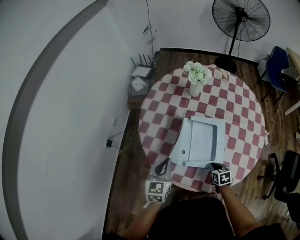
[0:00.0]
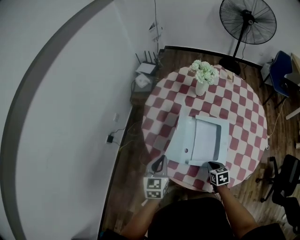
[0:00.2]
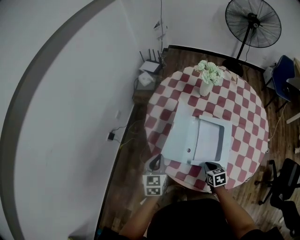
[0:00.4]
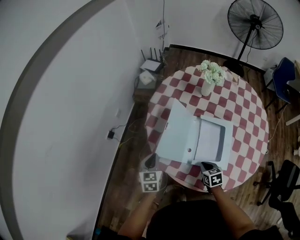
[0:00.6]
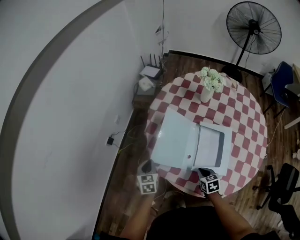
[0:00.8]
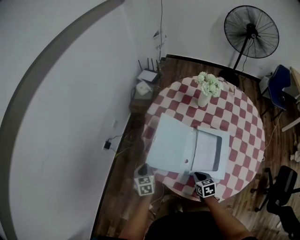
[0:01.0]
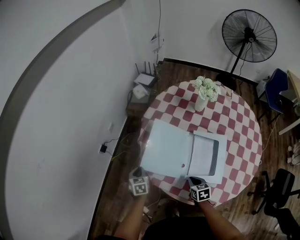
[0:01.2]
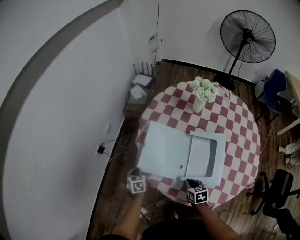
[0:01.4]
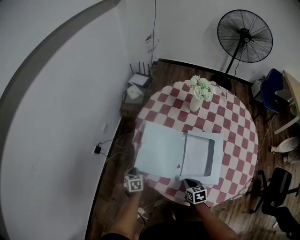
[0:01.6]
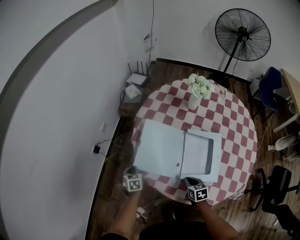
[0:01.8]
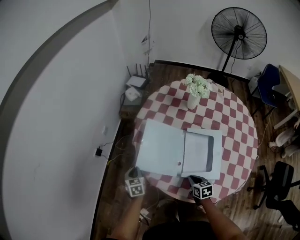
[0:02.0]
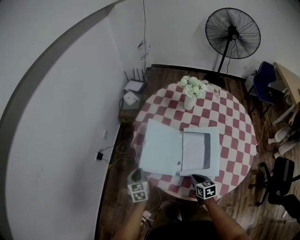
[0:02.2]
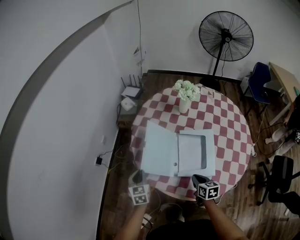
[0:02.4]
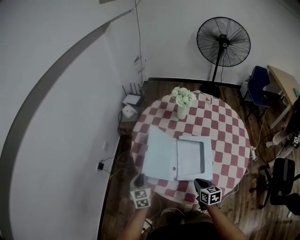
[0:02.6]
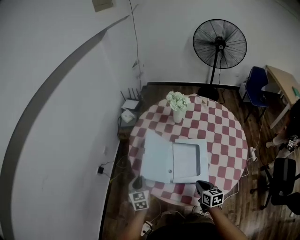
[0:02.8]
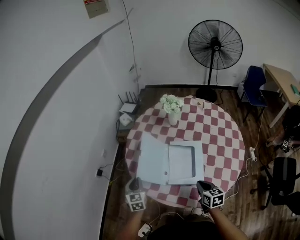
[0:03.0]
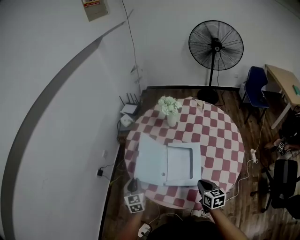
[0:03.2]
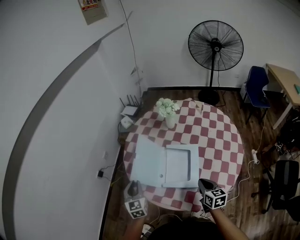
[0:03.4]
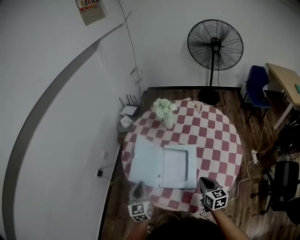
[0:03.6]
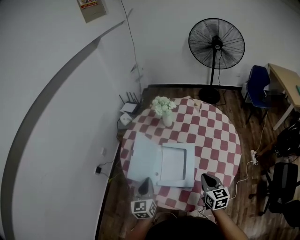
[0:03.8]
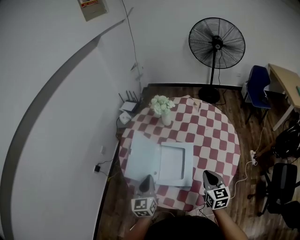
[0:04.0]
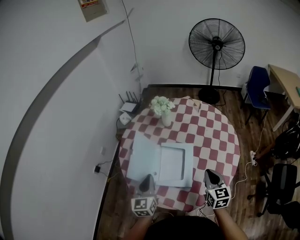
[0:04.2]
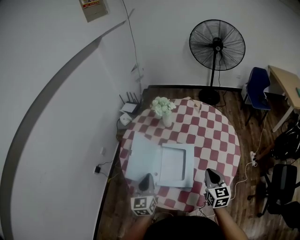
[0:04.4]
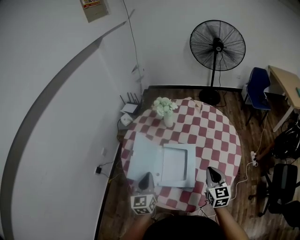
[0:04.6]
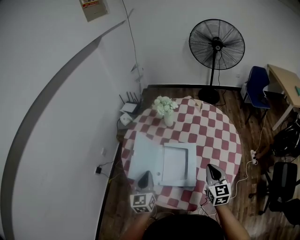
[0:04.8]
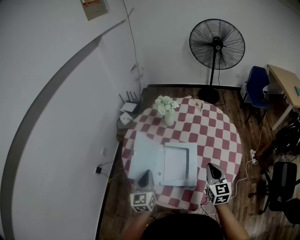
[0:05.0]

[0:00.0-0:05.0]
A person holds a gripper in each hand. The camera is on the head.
0:00.0 to 0:01.6: The left gripper is displaced downward, to the left and forward by roughly 30 cm, and swivels approximately 40 degrees; the right gripper heads to the left, covering about 15 cm.
0:01.6 to 0:03.4: The right gripper is displaced to the right, upward and backward by some 30 cm, and rotates about 20 degrees. The left gripper moves upward, to the right and backward, about 35 cm, and points its fingers roughly 30 degrees further upward.
0:03.4 to 0:05.0: The left gripper moves to the right and upward, approximately 10 cm, while the right gripper heads upward, covering about 10 cm, and changes its angle by roughly 20 degrees.

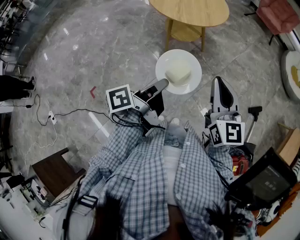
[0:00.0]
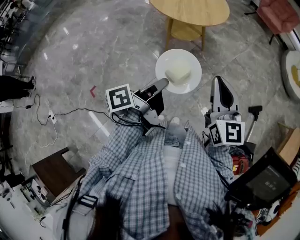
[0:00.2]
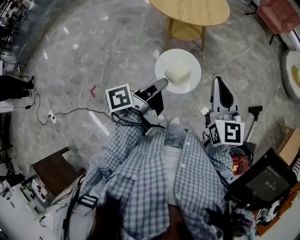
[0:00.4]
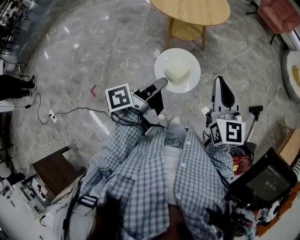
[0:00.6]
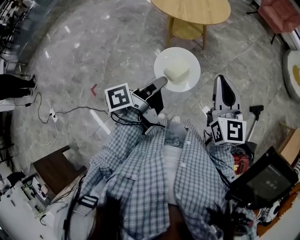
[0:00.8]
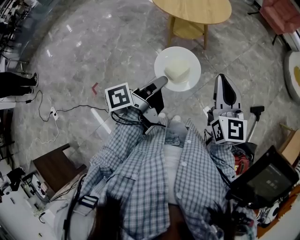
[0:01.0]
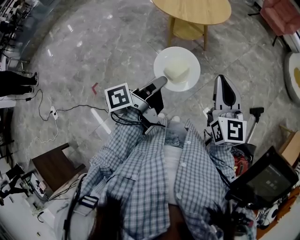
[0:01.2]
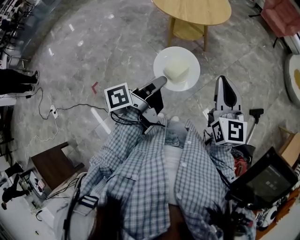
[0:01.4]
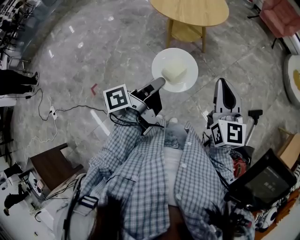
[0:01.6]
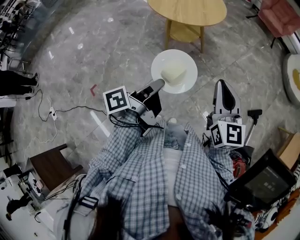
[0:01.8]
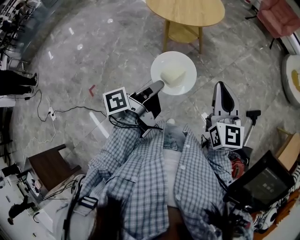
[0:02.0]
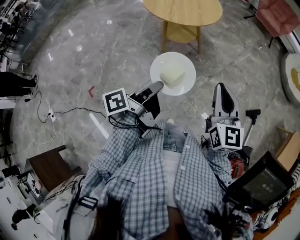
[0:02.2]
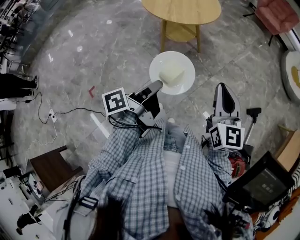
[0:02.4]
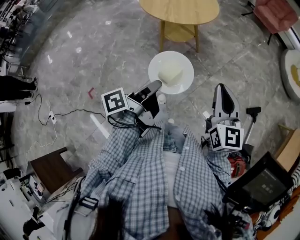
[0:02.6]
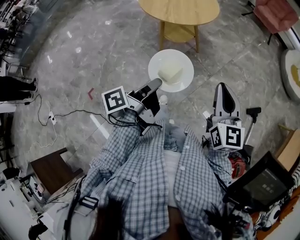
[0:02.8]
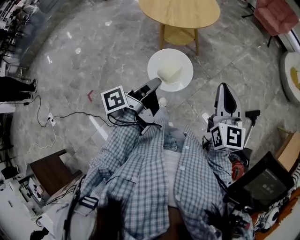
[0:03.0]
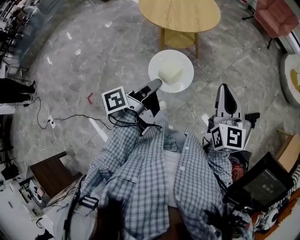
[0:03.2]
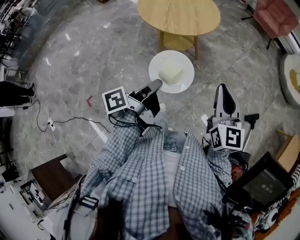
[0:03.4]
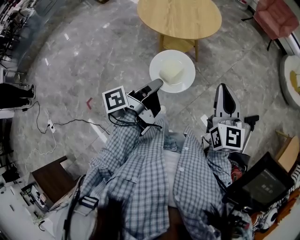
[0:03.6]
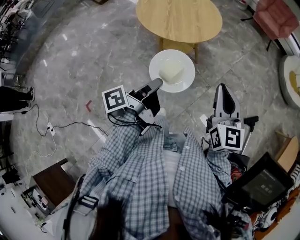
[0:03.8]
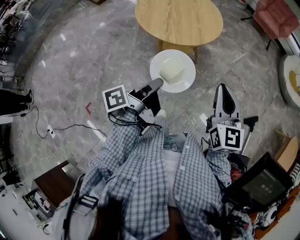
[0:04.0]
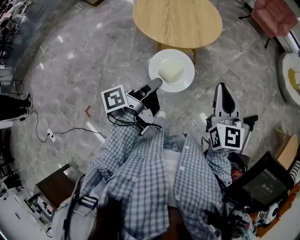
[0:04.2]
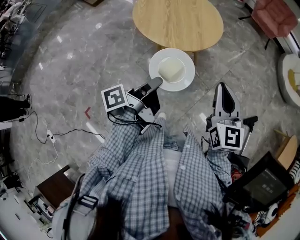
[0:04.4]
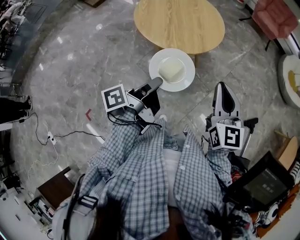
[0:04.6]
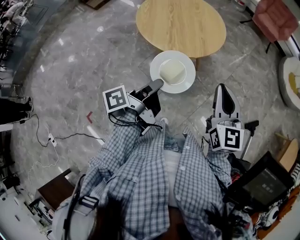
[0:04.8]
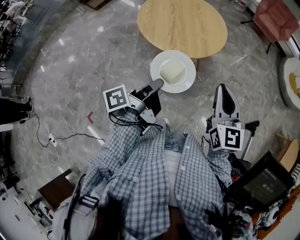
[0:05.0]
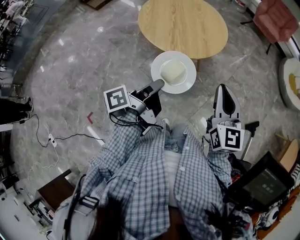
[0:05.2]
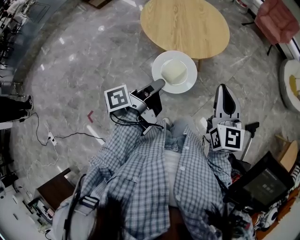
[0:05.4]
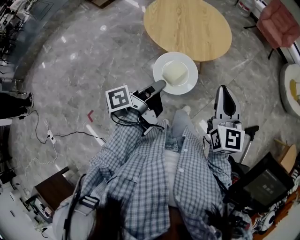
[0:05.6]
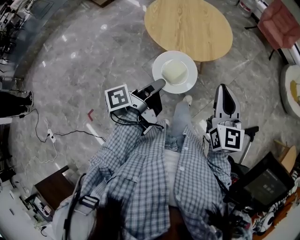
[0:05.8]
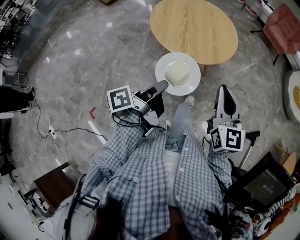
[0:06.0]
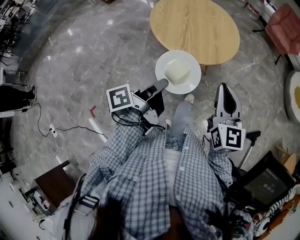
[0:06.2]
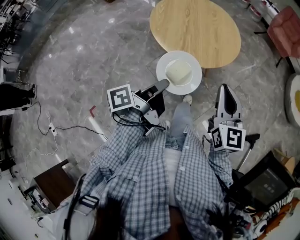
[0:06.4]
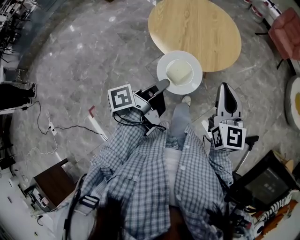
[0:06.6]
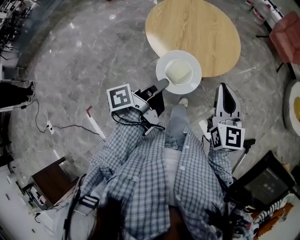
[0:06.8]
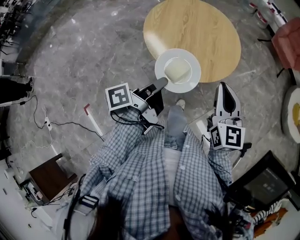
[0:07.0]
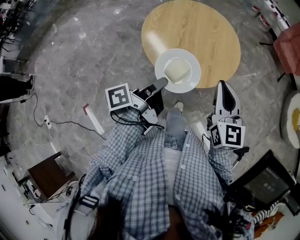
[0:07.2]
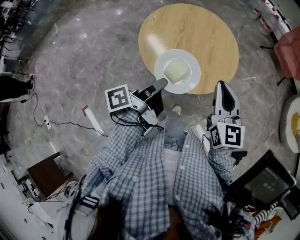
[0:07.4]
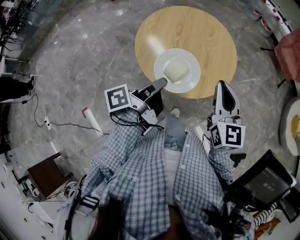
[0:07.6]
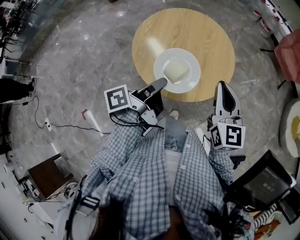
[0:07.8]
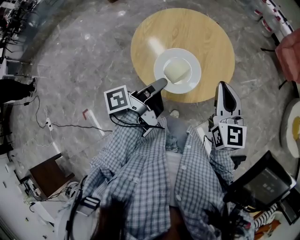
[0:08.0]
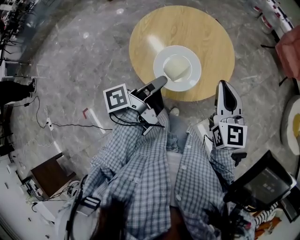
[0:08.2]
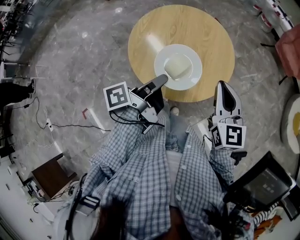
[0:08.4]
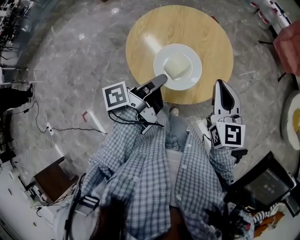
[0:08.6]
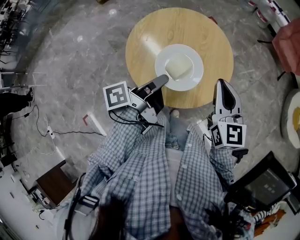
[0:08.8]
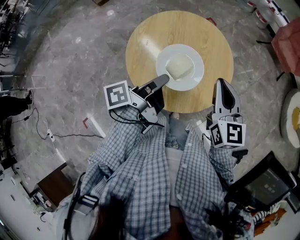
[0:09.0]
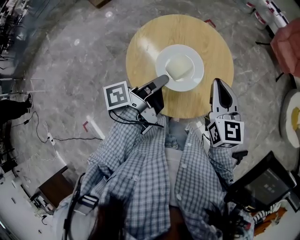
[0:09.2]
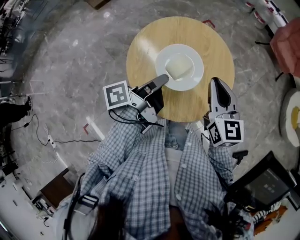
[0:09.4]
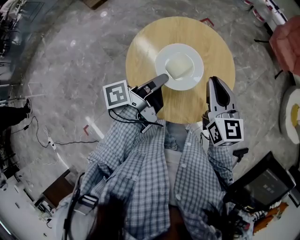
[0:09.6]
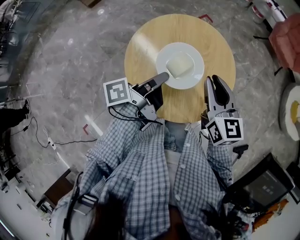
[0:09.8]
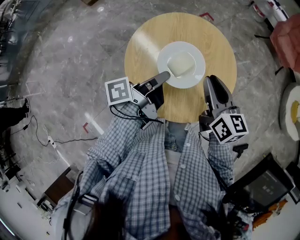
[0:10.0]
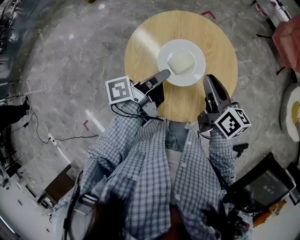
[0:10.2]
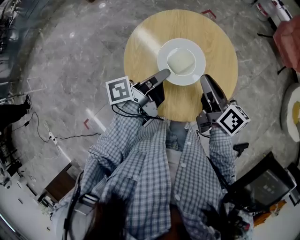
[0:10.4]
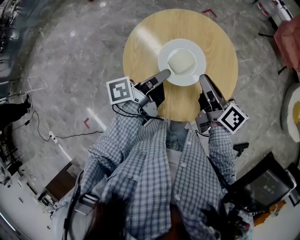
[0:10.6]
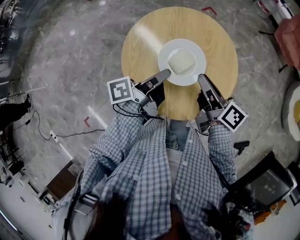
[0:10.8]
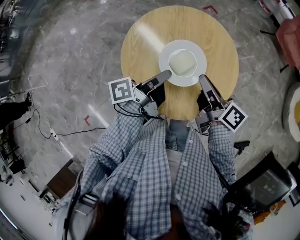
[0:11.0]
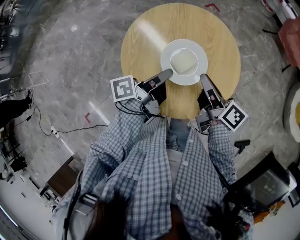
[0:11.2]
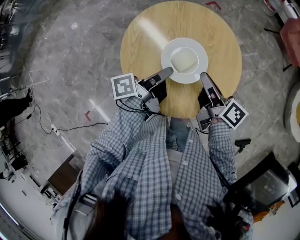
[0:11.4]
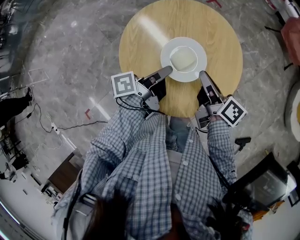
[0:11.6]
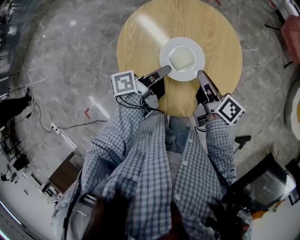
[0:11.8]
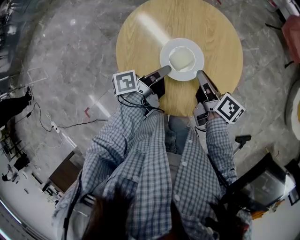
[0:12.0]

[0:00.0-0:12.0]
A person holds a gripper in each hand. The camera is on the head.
0:01.6 to 0:03.0: The right gripper changes place by approximately 5 cm.
0:03.0 to 0:04.4: The right gripper changes place by about 15 cm.
0:04.4 to 0:06.0: The right gripper shifts by roughly 5 cm.
0:06.0 to 0:07.6: The right gripper shifts by about 25 cm.
0:07.6 to 0:09.0: The right gripper ends up roughly 5 cm from where it was.
0:09.0 to 0:10.4: The right gripper moves about 10 cm, and rotates around the line of its fingers by about 50 degrees, clockwise from behind.
0:10.4 to 0:12.0: The right gripper is displaced downward by approximately 10 cm.

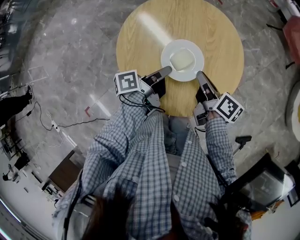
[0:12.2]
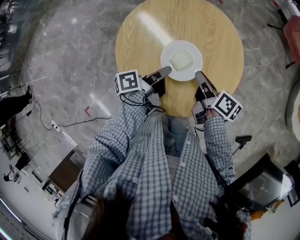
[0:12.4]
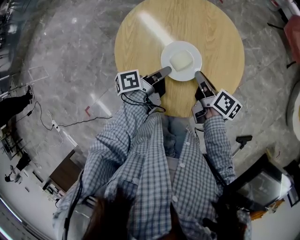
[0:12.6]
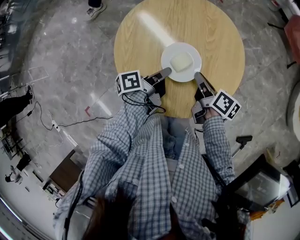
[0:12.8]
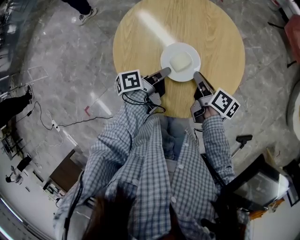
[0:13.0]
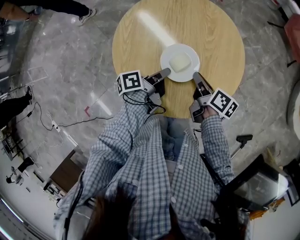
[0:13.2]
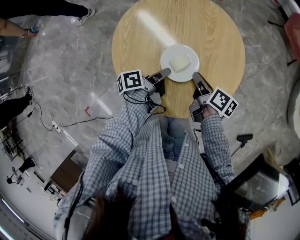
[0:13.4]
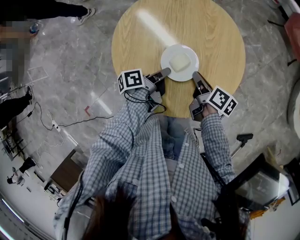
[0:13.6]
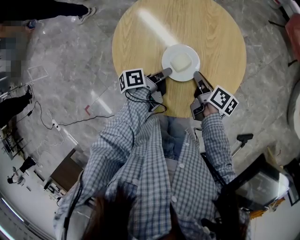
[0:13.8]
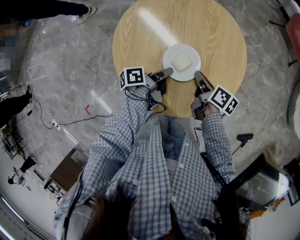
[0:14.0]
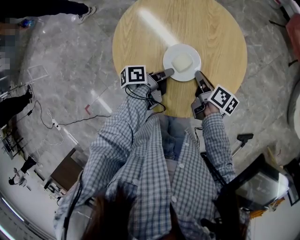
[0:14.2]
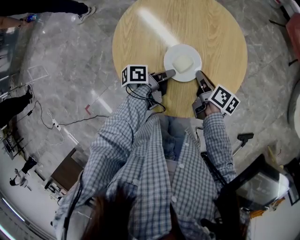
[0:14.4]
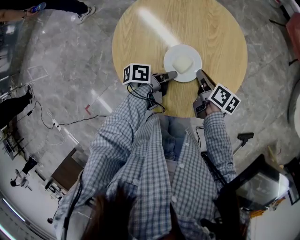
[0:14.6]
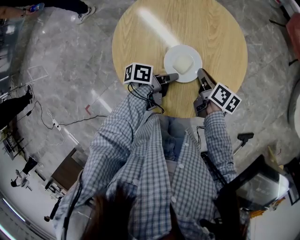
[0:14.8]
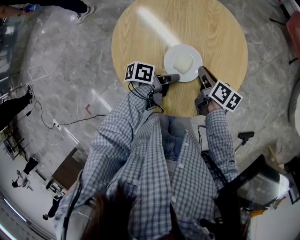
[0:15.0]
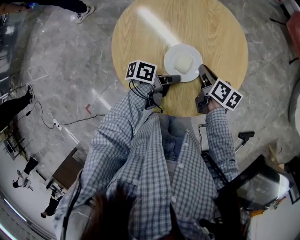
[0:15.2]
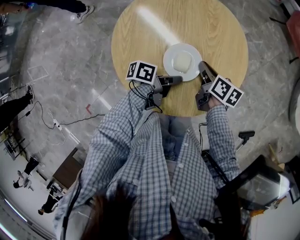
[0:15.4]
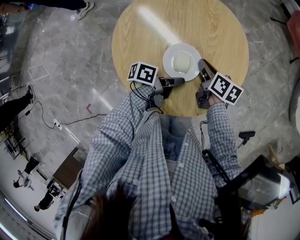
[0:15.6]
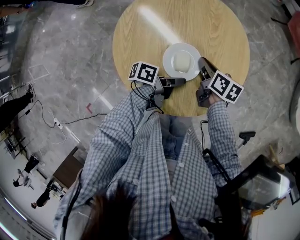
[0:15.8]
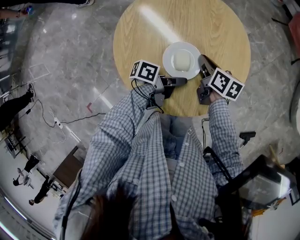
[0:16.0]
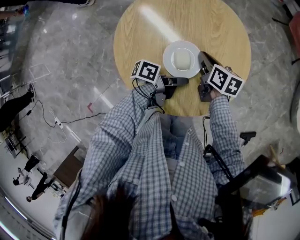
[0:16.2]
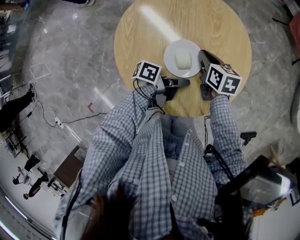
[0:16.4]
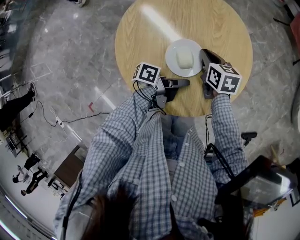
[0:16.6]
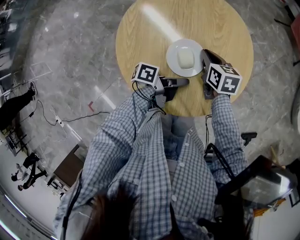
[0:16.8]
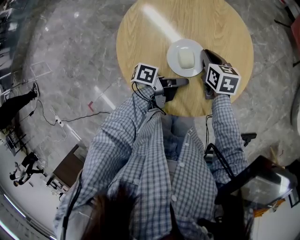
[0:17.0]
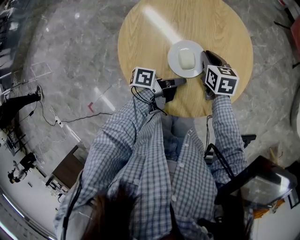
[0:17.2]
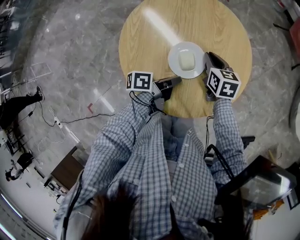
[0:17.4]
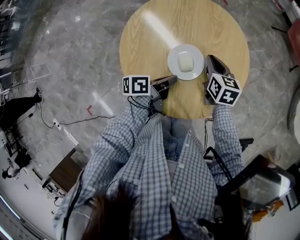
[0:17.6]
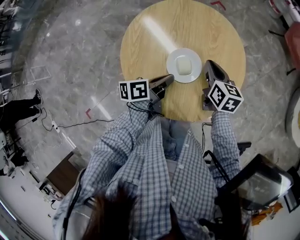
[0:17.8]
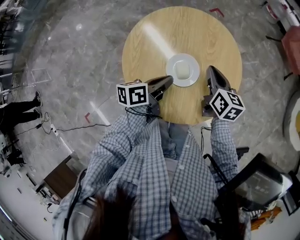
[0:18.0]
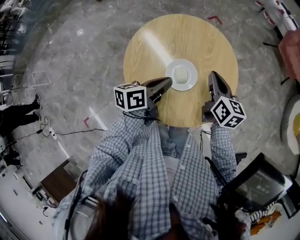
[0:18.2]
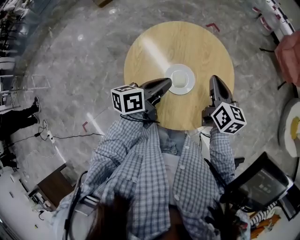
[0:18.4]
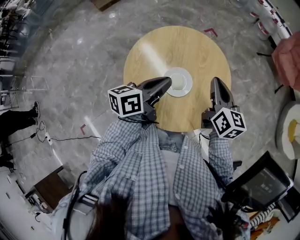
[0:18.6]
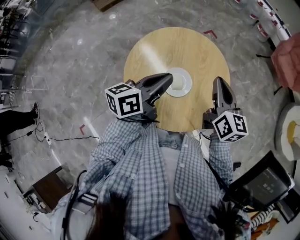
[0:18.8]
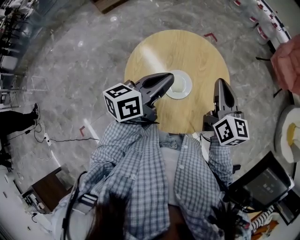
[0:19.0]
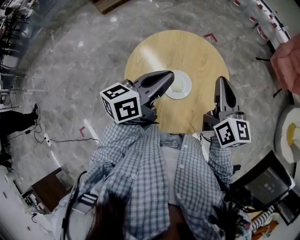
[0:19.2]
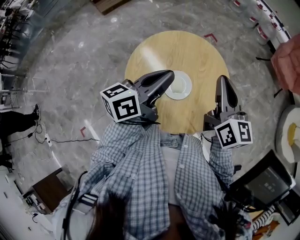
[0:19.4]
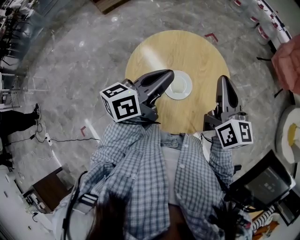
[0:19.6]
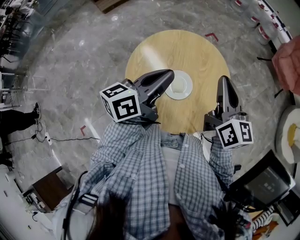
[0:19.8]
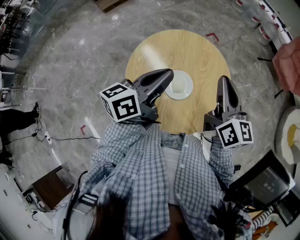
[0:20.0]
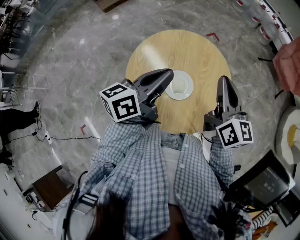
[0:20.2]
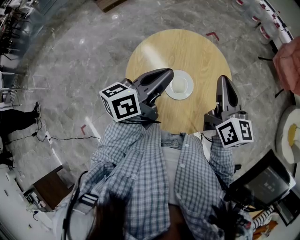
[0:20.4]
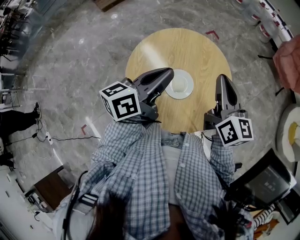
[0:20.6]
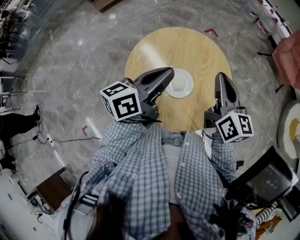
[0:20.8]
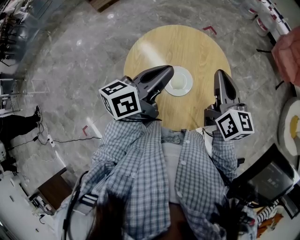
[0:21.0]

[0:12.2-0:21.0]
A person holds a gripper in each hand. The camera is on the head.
0:12.2 to 0:13.6: The right gripper heads downward, covering approximately 10 cm.
0:15.2 to 0:16.6: The right gripper shifts by some 5 cm, and changes its angle by about 30 degrees.
0:16.6 to 0:18.0: The right gripper heads upward, covering approximately 10 cm.
0:18.0 to 0:19.6: The right gripper heads upward, covering approximately 20 cm, and changes its angle by roughly 30 degrees.
